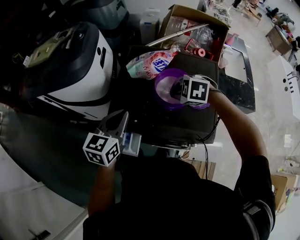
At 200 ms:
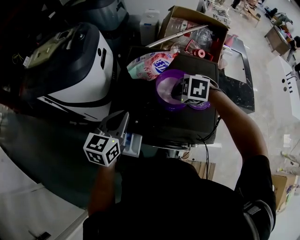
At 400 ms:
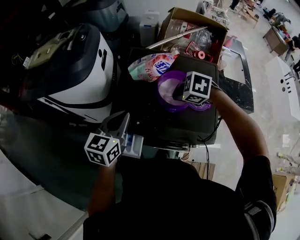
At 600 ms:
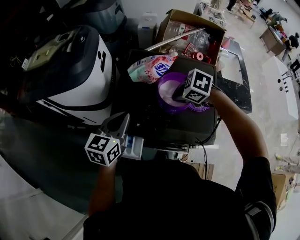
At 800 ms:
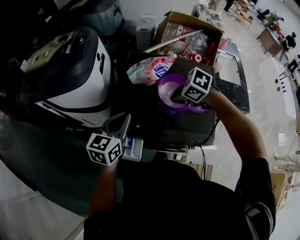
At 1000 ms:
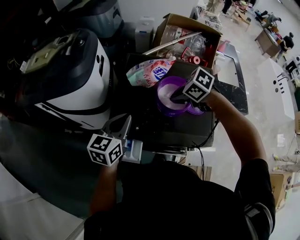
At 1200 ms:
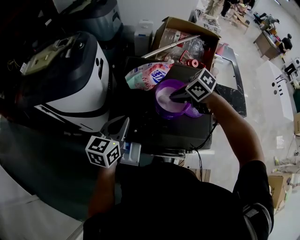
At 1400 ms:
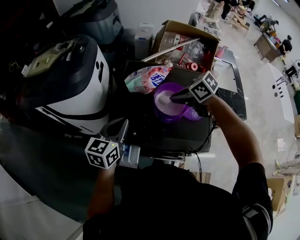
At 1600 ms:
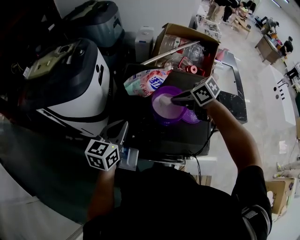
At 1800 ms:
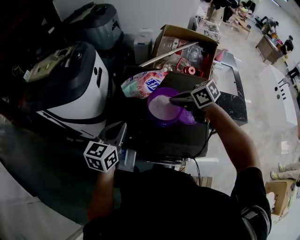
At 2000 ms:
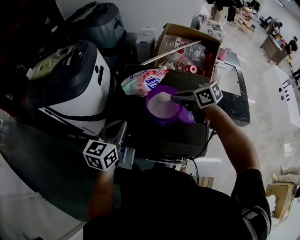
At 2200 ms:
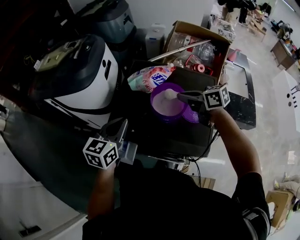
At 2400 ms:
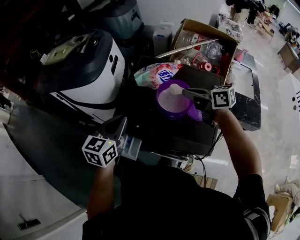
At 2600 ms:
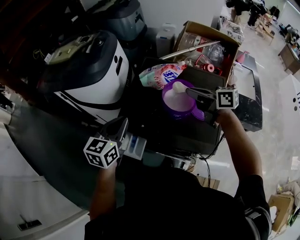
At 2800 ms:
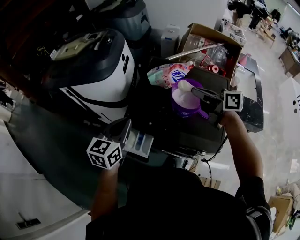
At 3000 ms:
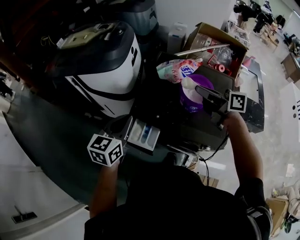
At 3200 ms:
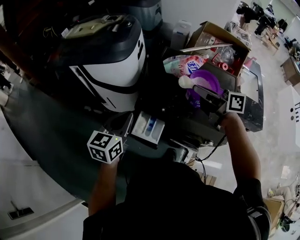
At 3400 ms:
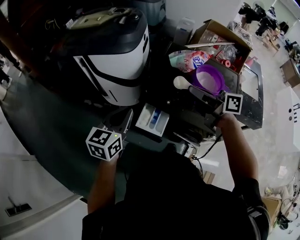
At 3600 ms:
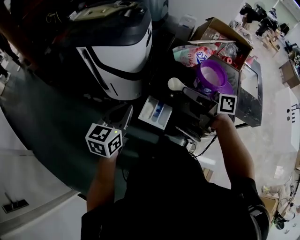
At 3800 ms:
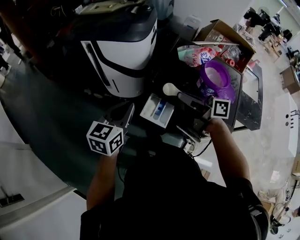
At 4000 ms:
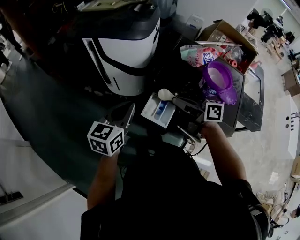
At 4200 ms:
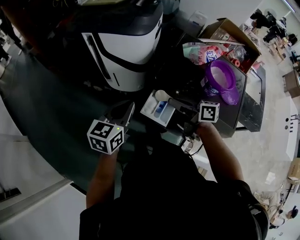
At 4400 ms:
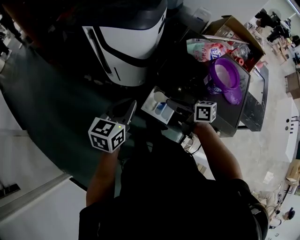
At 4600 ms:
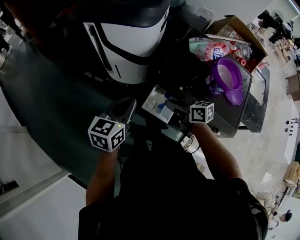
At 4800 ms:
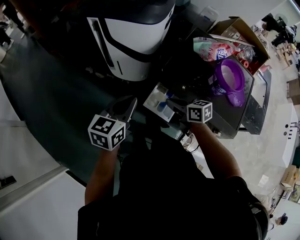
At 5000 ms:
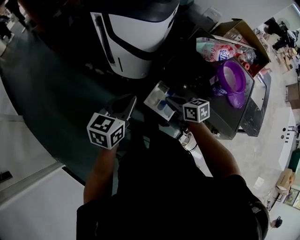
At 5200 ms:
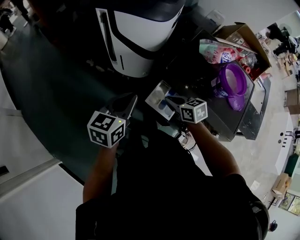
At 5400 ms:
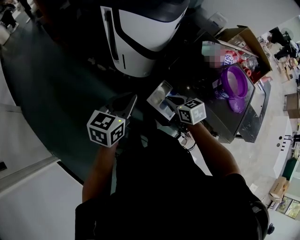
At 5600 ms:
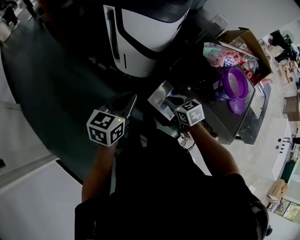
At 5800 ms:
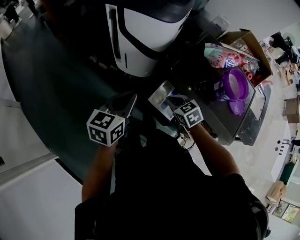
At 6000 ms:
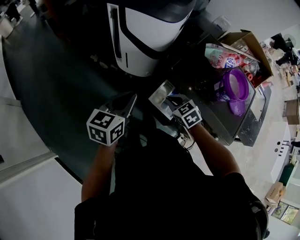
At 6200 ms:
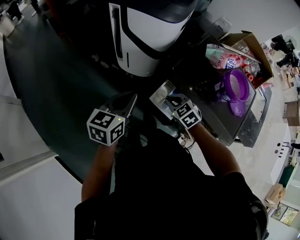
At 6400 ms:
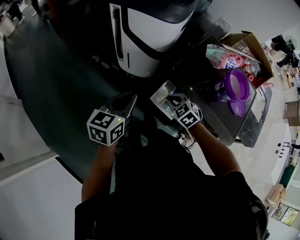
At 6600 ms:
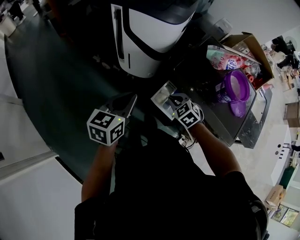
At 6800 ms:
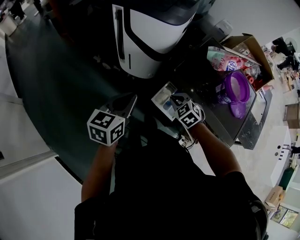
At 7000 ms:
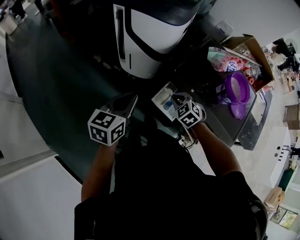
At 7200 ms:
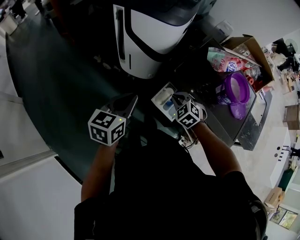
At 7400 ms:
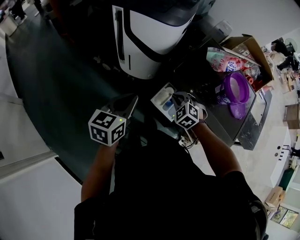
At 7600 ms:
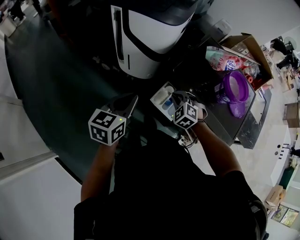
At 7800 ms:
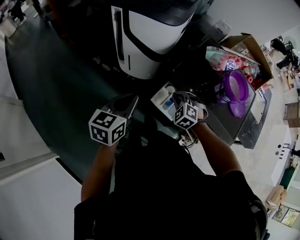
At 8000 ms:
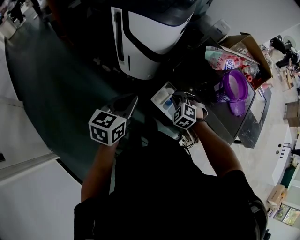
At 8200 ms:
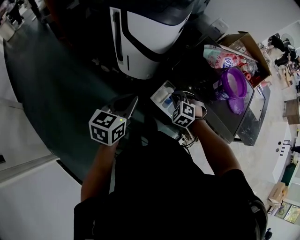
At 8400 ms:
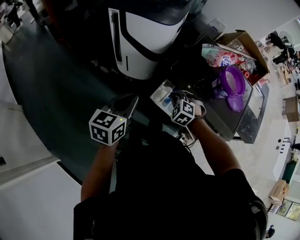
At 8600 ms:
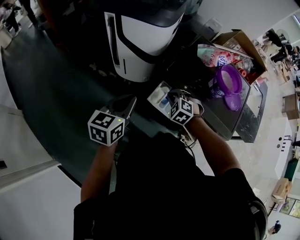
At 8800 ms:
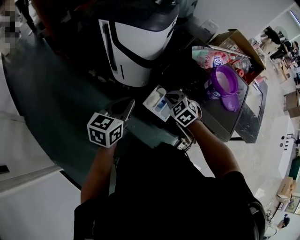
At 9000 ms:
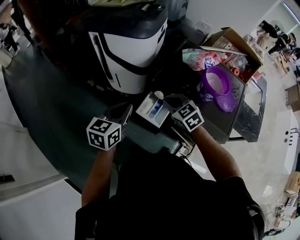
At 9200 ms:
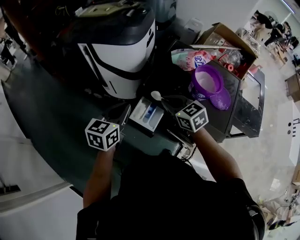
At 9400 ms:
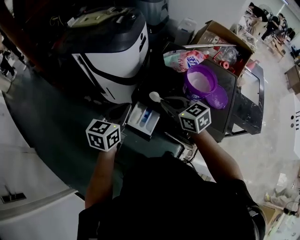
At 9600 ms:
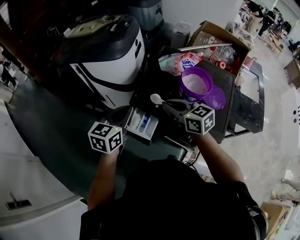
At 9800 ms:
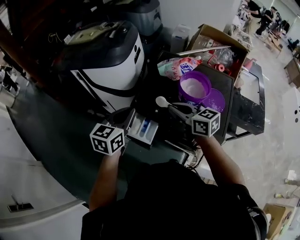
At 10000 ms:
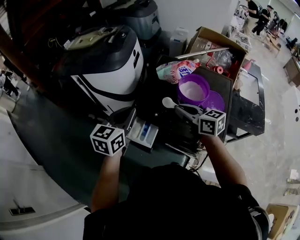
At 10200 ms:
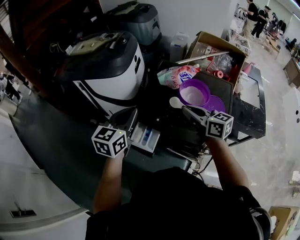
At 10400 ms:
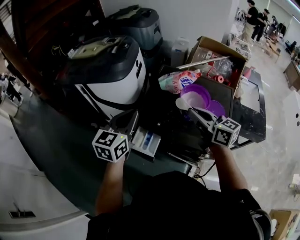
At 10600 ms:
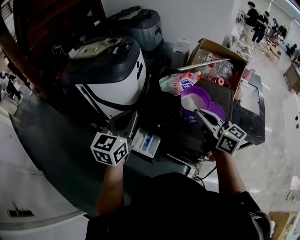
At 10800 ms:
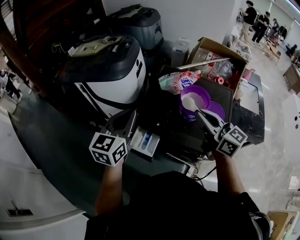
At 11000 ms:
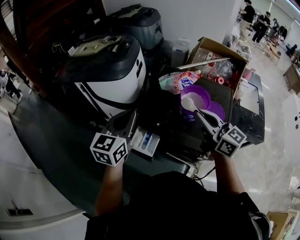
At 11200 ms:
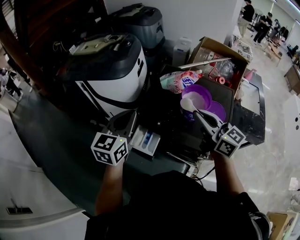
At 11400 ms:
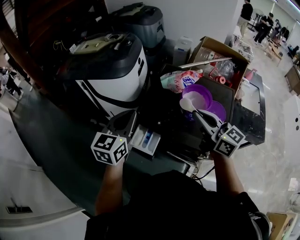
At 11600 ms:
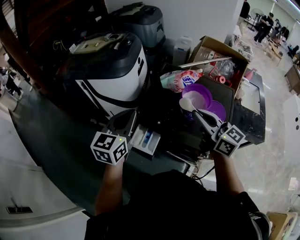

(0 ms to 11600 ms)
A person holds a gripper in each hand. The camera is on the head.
0 ms - 1400 ms: The right gripper changes place by about 5 cm, and twists roughly 40 degrees clockwise, seen from behind.
1400 ms - 2800 ms: The left gripper moves to the left and backward, some 10 cm. The right gripper travels upward by about 10 cm, and angles its fingers upward, by about 40 degrees.
2800 ms - 4400 ms: The right gripper travels to the left and downward by some 35 cm, while the left gripper is displaced to the left by about 15 cm.
4400 ms - 5800 ms: The left gripper ends up some 5 cm from where it was; the right gripper is displaced downward by roughly 10 cm, and points its fingers roughly 30 degrees further downward.
5800 ms - 7200 ms: The right gripper swivels roughly 30 degrees.
7200 ms - 8800 ms: The right gripper travels upward by about 5 cm.
8800 ms - 10200 ms: The left gripper moves to the right, upward and forward, roughly 20 cm. The right gripper heads to the right and upward, covering roughly 30 cm, and tips its fingers upward by some 40 degrees.
10200 ms - 11600 ms: The right gripper heads upward, covering approximately 5 cm.

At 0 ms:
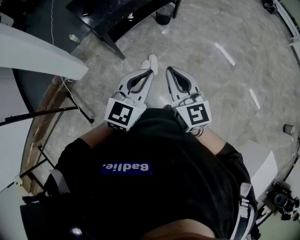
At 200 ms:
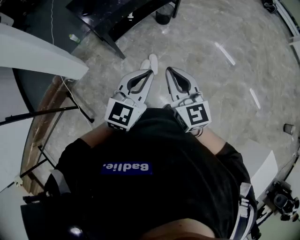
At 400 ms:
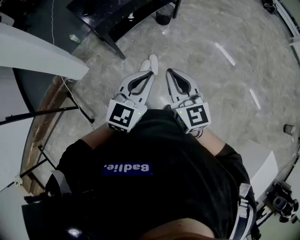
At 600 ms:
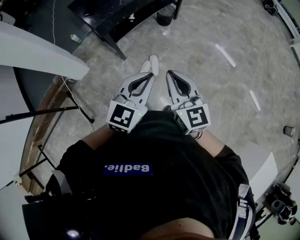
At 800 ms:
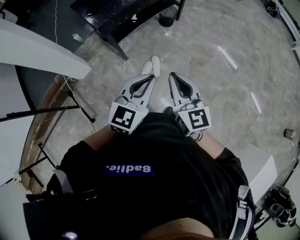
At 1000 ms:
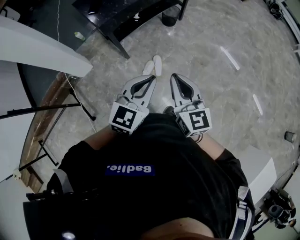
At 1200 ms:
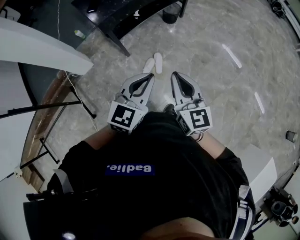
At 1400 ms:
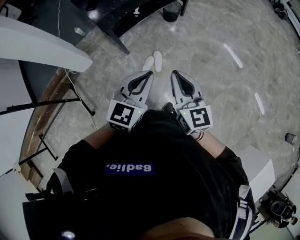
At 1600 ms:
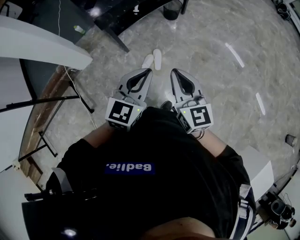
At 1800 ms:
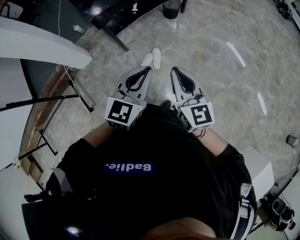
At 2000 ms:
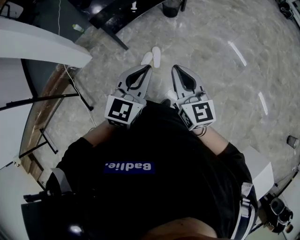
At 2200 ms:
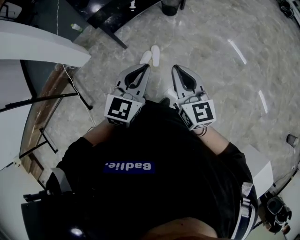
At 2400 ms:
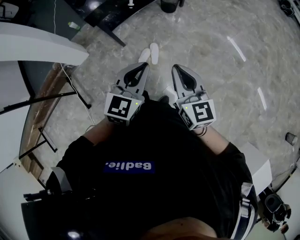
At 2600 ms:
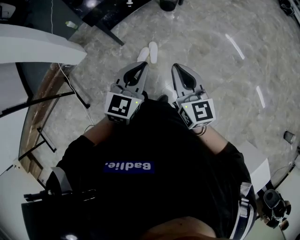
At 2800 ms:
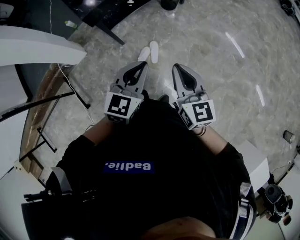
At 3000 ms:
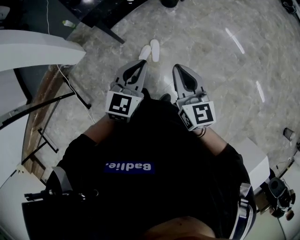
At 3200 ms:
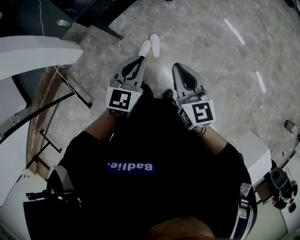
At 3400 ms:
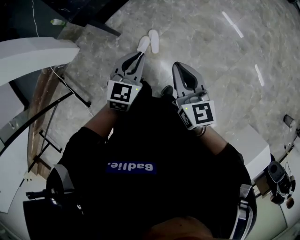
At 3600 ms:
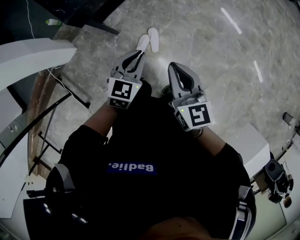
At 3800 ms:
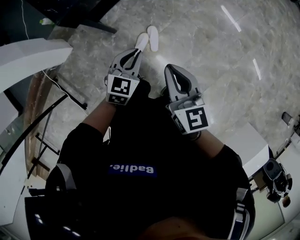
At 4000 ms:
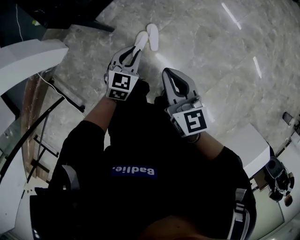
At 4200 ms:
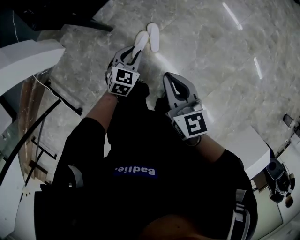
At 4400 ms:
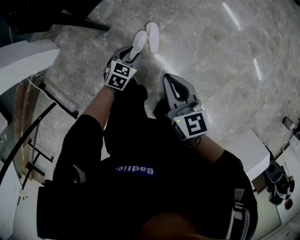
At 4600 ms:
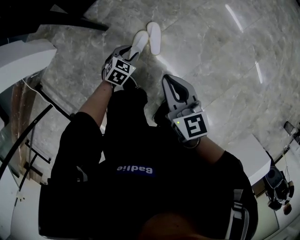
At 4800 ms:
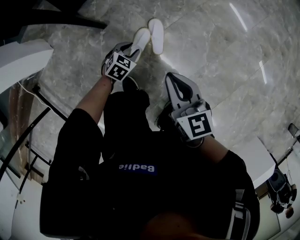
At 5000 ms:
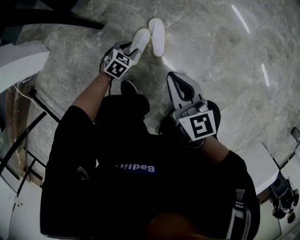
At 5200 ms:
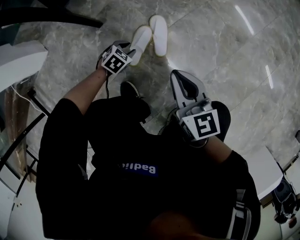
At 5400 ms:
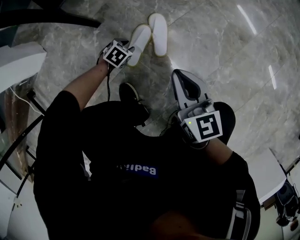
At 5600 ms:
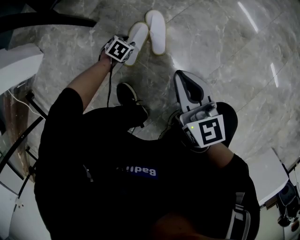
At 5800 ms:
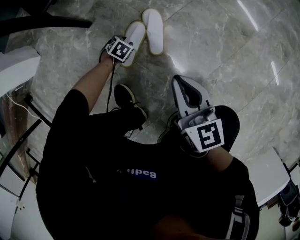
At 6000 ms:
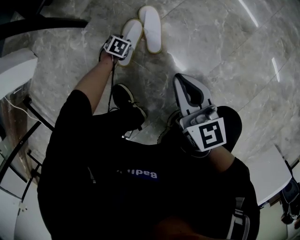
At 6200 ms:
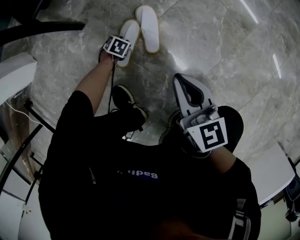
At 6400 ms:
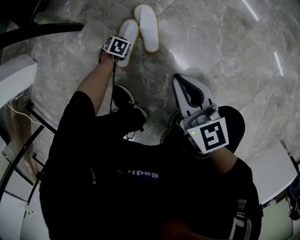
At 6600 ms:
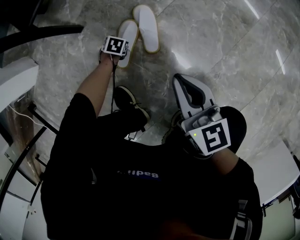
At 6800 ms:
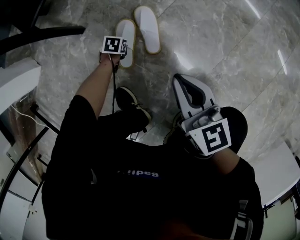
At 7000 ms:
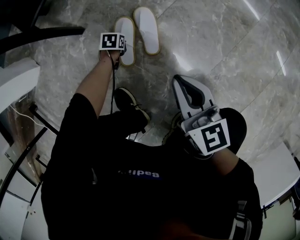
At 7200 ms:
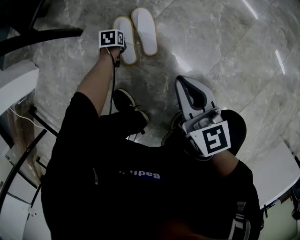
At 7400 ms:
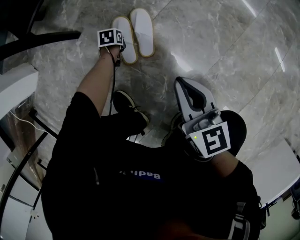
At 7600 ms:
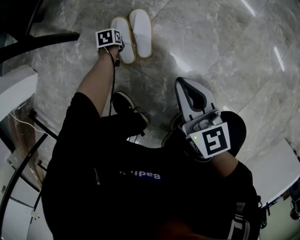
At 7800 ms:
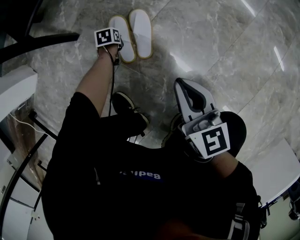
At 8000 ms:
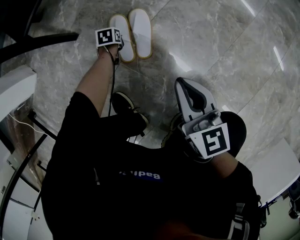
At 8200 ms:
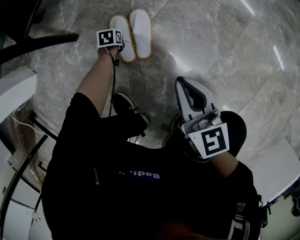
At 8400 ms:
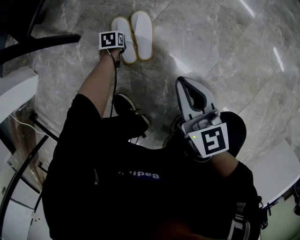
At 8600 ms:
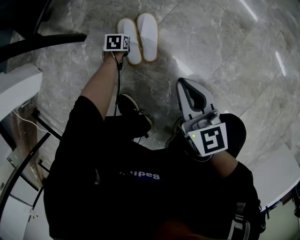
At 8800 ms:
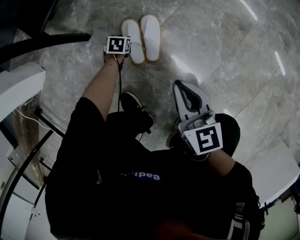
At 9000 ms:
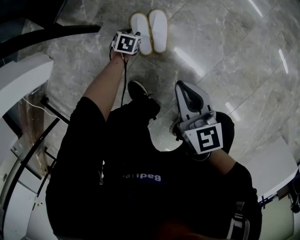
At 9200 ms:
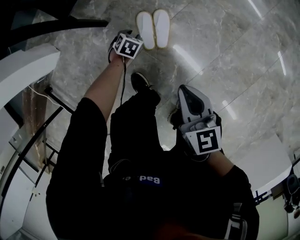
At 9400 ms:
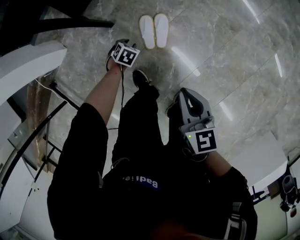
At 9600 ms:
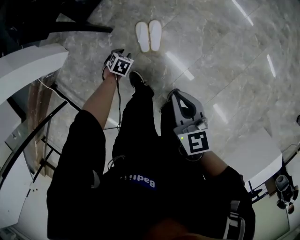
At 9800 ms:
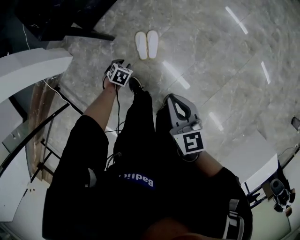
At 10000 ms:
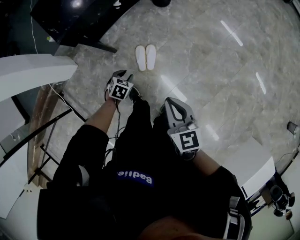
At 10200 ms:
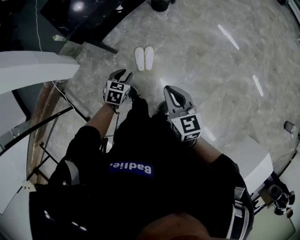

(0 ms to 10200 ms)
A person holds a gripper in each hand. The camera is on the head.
0 ms - 1400 ms: The right gripper travels to the right by some 5 cm.
1400 ms - 3000 ms: The two grippers go some 15 cm forward and downward.
3000 ms - 4400 ms: The left gripper goes some 50 cm downward, turns by about 30 degrees, and opens up; the right gripper goes some 35 cm downward.
4400 ms - 5800 ms: Both grippers travel together downward, some 35 cm. The left gripper swivels some 30 degrees.
5800 ms - 7200 ms: The left gripper shifts by some 5 cm, rotates about 30 degrees, and closes.
7200 ms - 8800 ms: The left gripper is displaced upward by about 5 cm, and opens.
8800 ms - 10200 ms: Both grippers move upward, roughly 60 cm.

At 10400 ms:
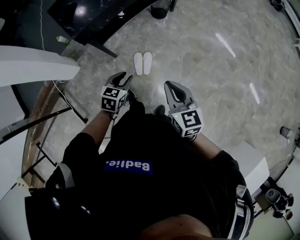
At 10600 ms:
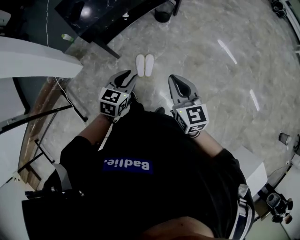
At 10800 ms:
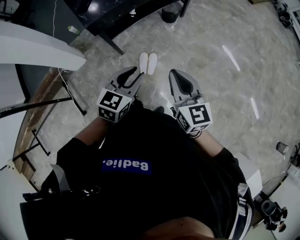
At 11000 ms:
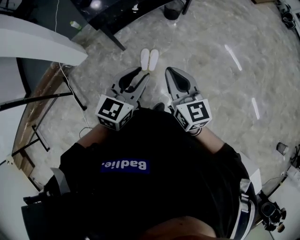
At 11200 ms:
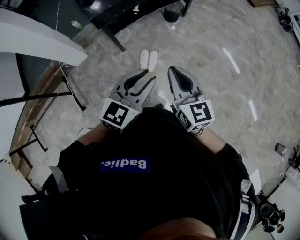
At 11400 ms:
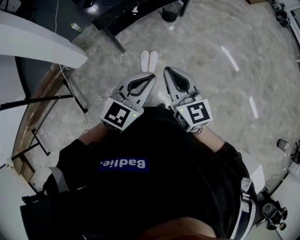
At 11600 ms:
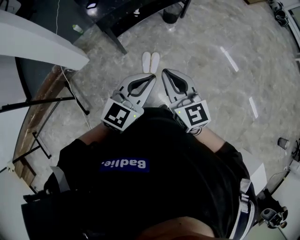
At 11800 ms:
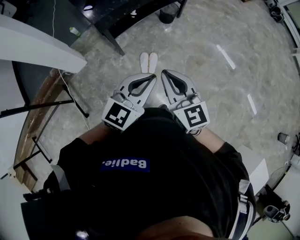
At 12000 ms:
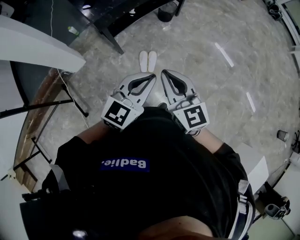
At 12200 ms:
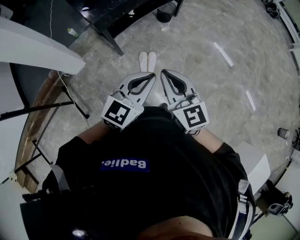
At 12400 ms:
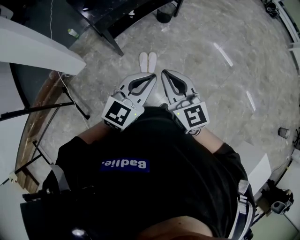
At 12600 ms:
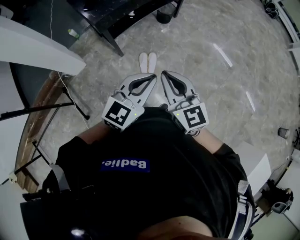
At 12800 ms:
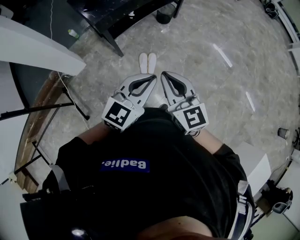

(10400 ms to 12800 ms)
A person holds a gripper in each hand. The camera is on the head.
10400 ms - 11600 ms: The left gripper moves upward and backward, some 30 cm, points its fingers some 30 degrees further upward, and closes its fingers; the right gripper shifts about 15 cm upward, backward and to the left.
11600 ms - 12800 ms: There are only small adjustments of the grippers.
